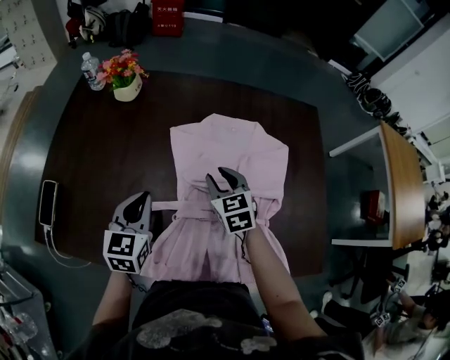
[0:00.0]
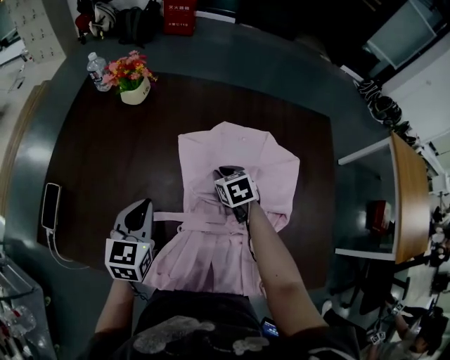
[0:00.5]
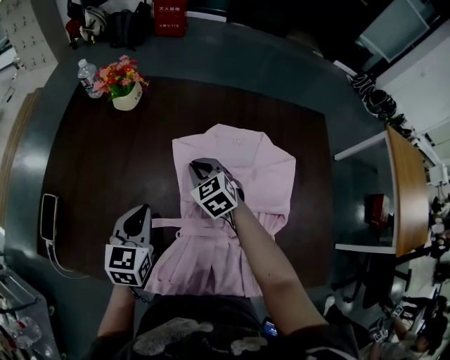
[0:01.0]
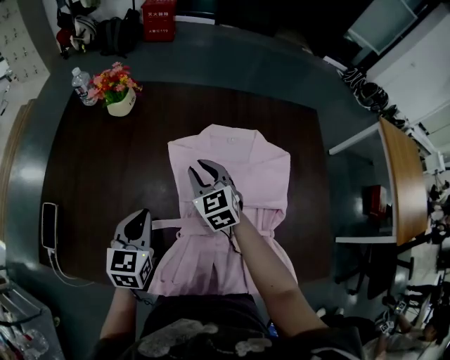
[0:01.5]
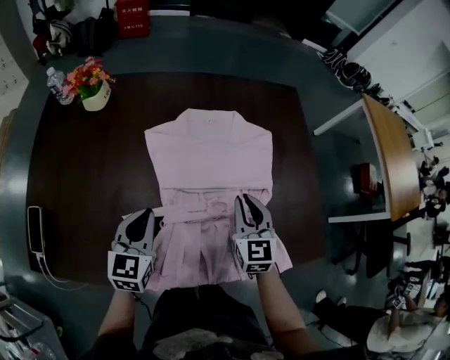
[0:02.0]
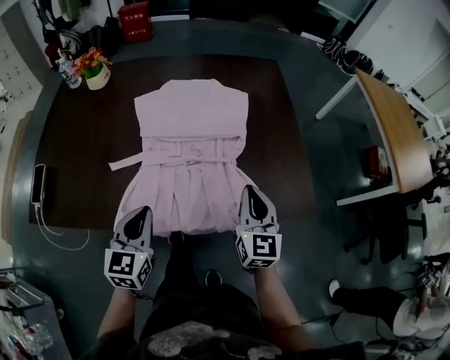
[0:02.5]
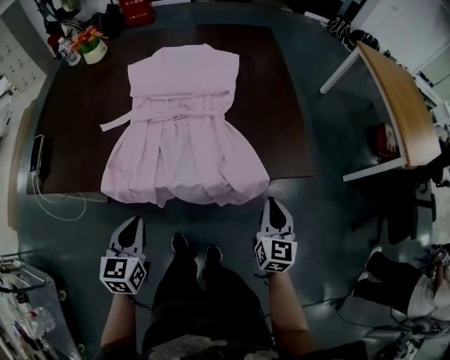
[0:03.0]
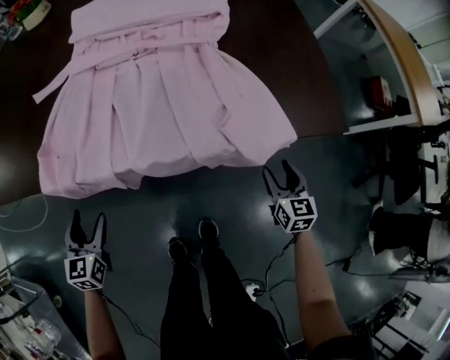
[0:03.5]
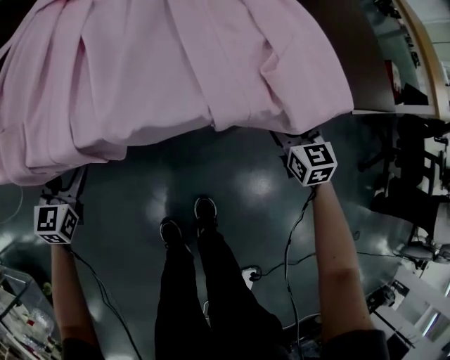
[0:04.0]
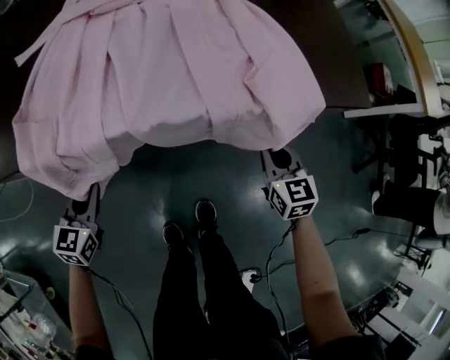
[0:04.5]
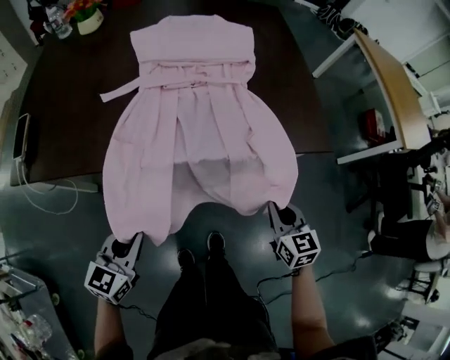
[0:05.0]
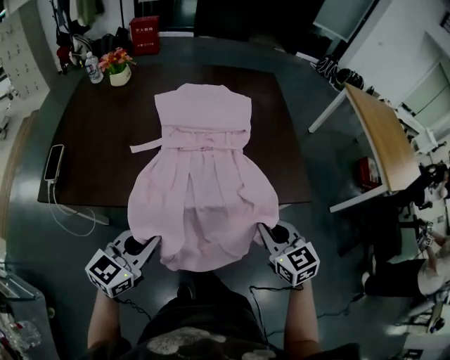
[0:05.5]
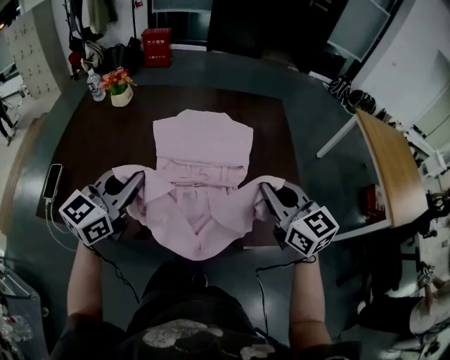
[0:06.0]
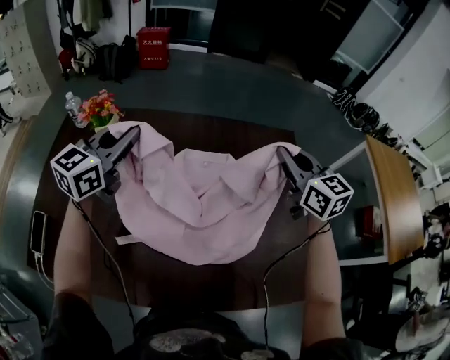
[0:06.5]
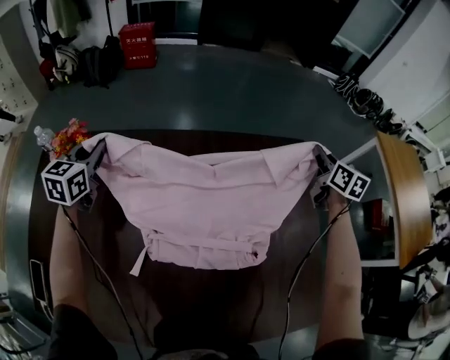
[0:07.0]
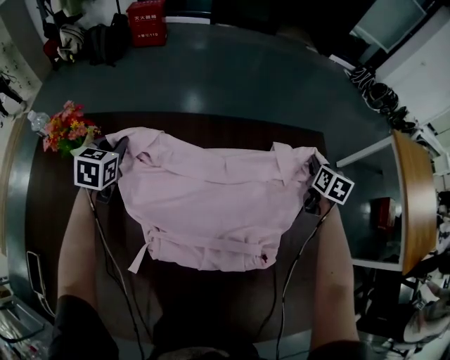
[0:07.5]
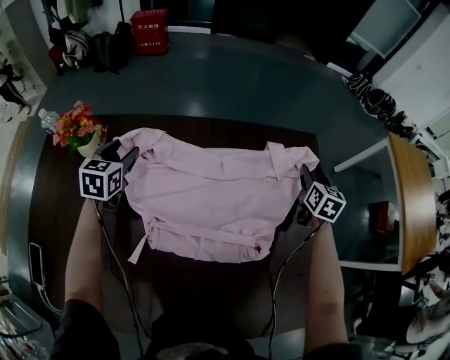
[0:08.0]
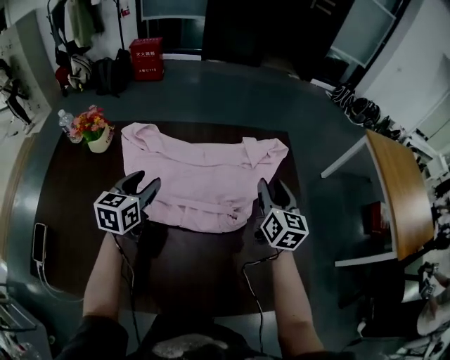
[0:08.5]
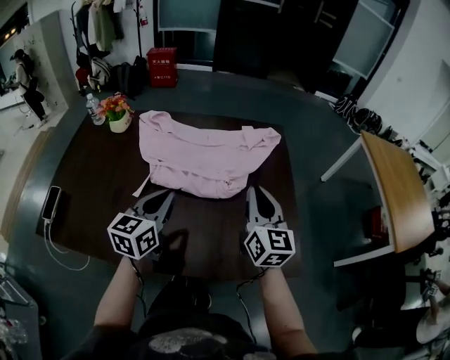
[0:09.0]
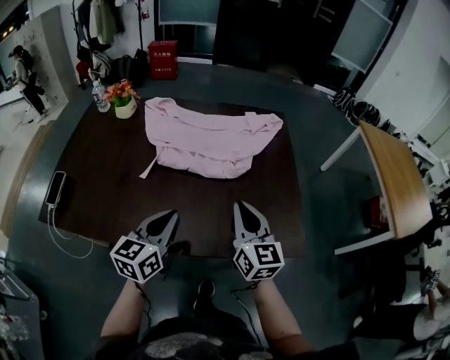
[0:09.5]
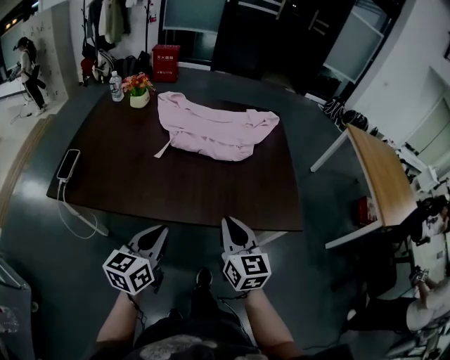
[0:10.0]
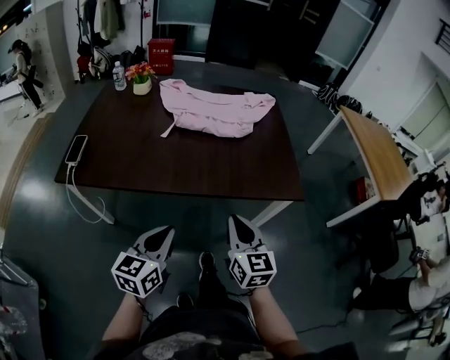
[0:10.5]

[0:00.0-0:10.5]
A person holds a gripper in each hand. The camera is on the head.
0:00.0 to 0:02.0: The right gripper heads to the right and backward, covering roughly 15 cm, and changes its angle by some 30 degrees. Meanwhile the left gripper changes place by roughly 5 cm.
0:02.0 to 0:04.0: The right gripper travels downward, to the right and backward by about 50 cm, and opens up. The left gripper goes approximately 40 cm downward and backward, and opens its fingers.
0:04.0 to 0:06.5: The two grippers travel together, forward, approximately 40 cm. The grippers both shift upward by some 60 cm. The left gripper rotates approximately 30 degrees, and closes; the right gripper turns by some 30 degrees, and closes.
0:06.5 to 0:08.5: The left gripper is displaced downward by about 15 cm, changes its angle by approximately 20 degrees, and opens up. Meanwhile the right gripper is displaced downward and to the right by some 15 cm, rotates roughly 30 degrees, and opens up.
0:08.5 to 0:10.5: Both grippers are carried backward, approximately 60 cm. The left gripper closes. Meanwhile the right gripper closes its fingers.

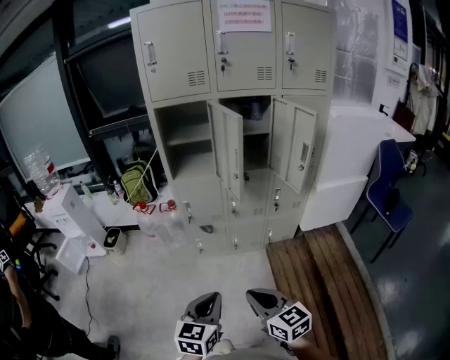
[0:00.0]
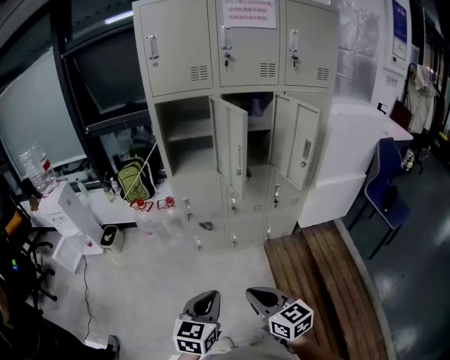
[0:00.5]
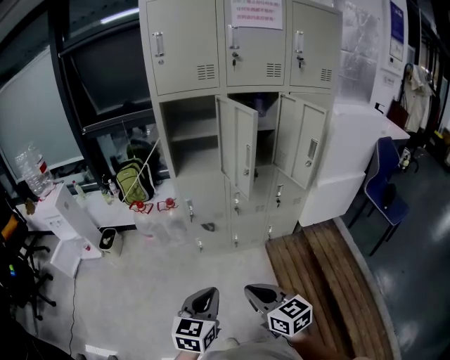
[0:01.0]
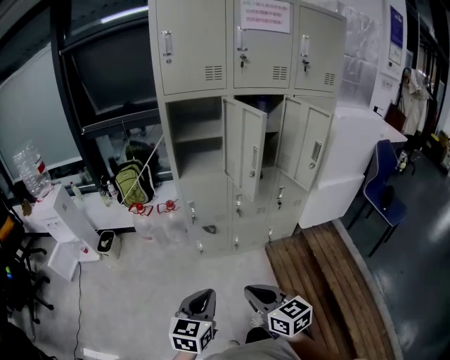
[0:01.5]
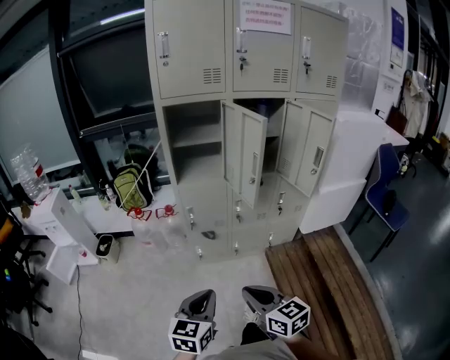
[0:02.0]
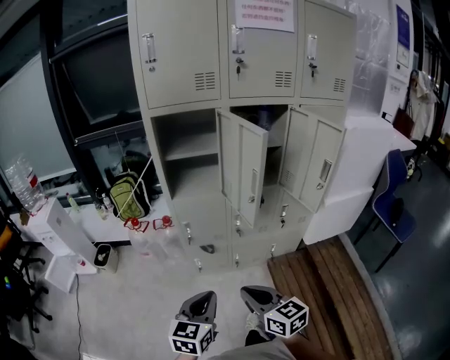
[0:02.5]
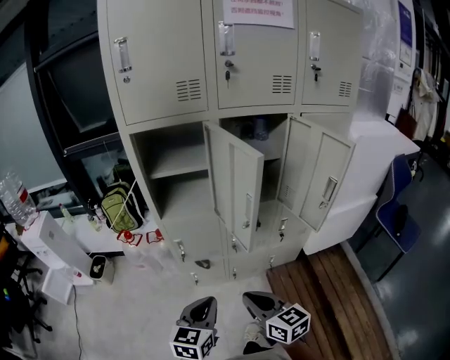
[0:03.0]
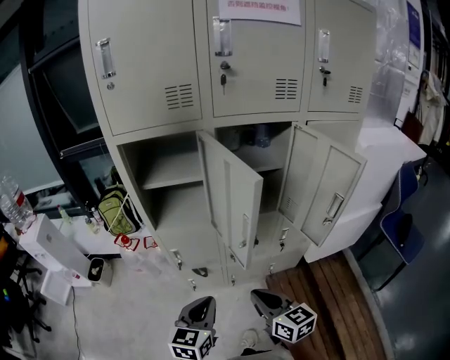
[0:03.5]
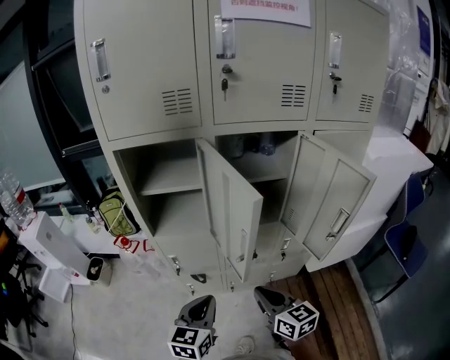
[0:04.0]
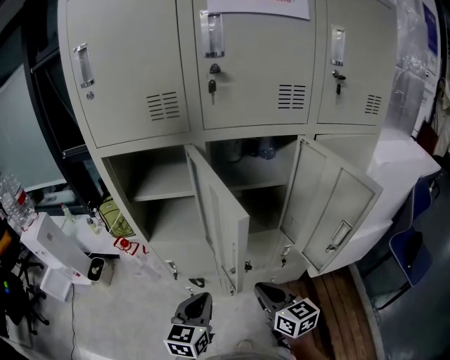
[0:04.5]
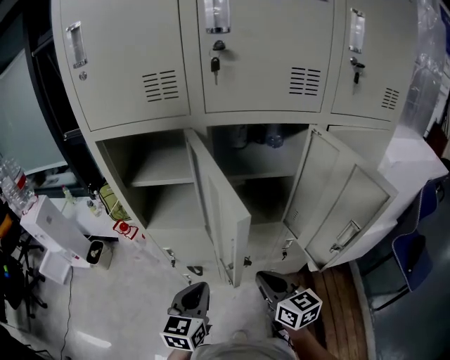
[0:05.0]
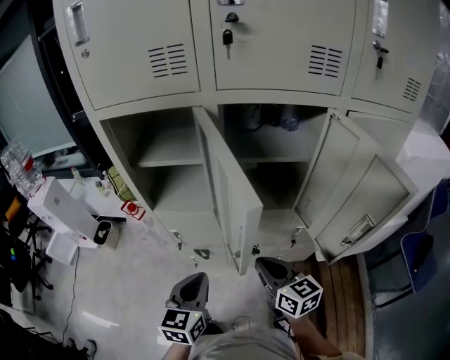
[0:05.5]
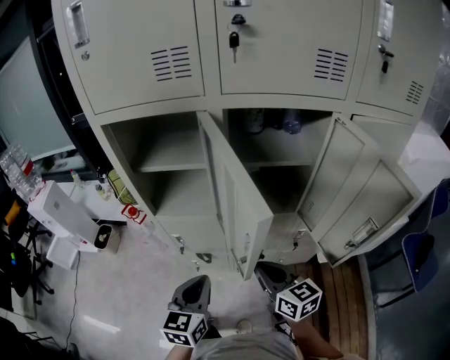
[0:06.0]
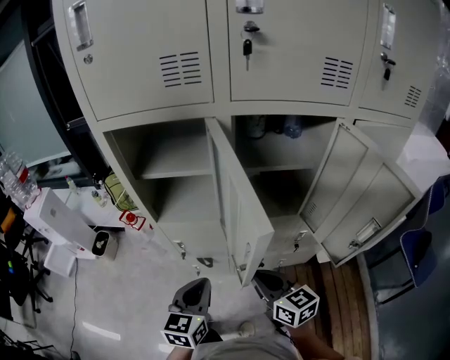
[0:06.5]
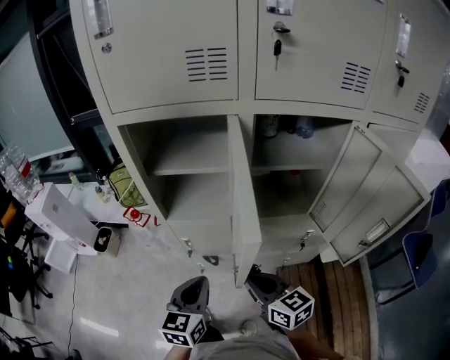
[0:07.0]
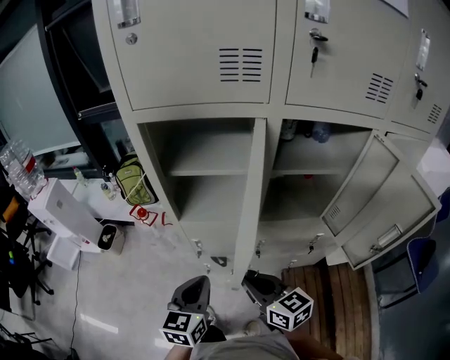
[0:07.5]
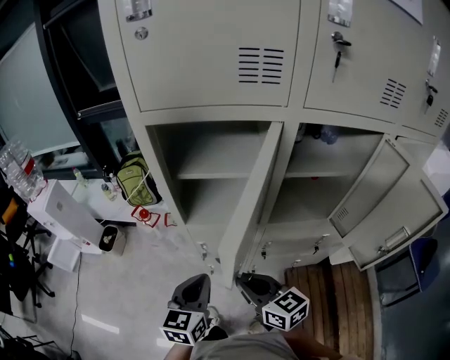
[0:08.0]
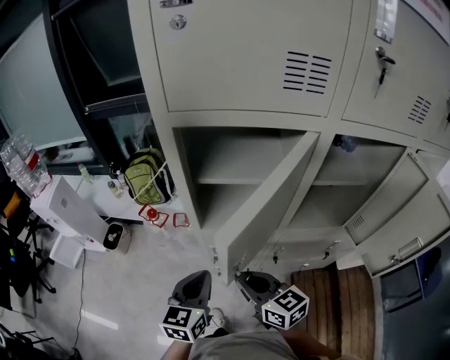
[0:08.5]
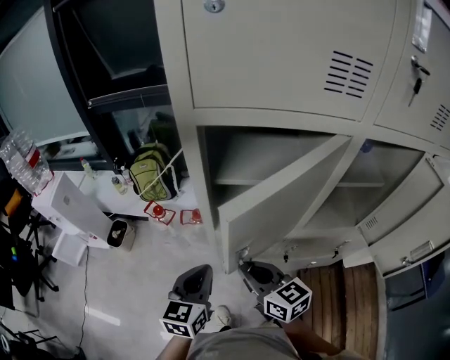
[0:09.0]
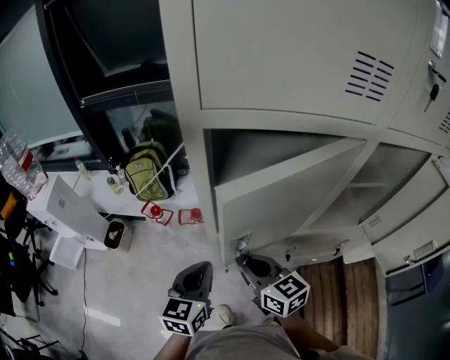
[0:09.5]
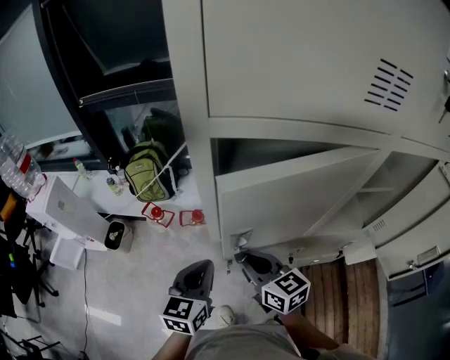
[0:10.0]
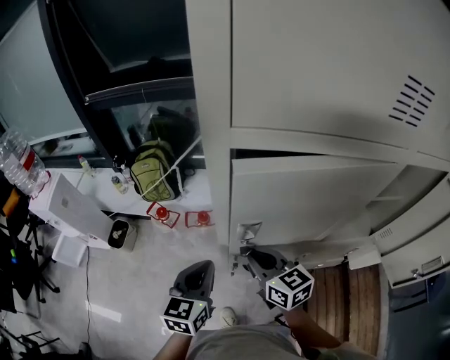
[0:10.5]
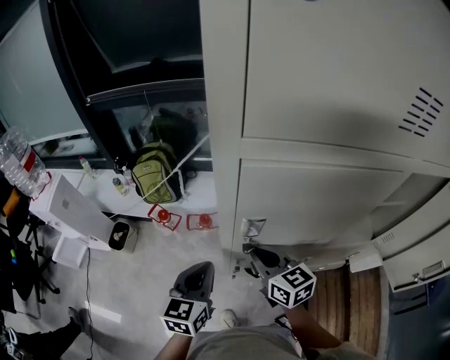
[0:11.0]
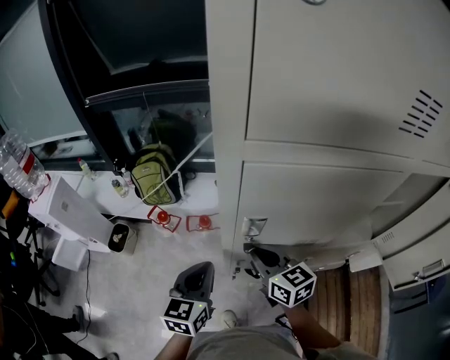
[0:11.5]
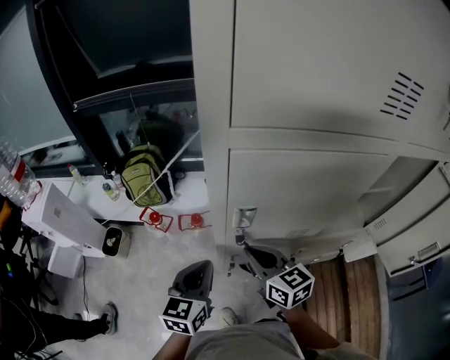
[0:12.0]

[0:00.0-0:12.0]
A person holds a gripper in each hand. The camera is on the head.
0:00.0 to 0:02.0: The grippers both shift to the left and forward by some 10 cm.
0:02.0 to 0:04.0: The grippers both shift forward and to the right by roughly 35 cm.
0:04.0 to 0:06.0: The grippers both shift forward by some 10 cm.
0:06.0 to 0:08.0: The left gripper heads to the left and forward, covering approximately 15 cm. The right gripper travels to the left by some 20 cm.
0:08.0 to 0:10.0: The two grippers go approximately 15 cm forward and to the left.
0:10.0 to 0:12.0: There are only small adjustments of the grippers.

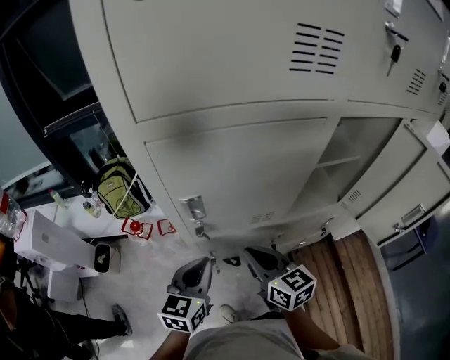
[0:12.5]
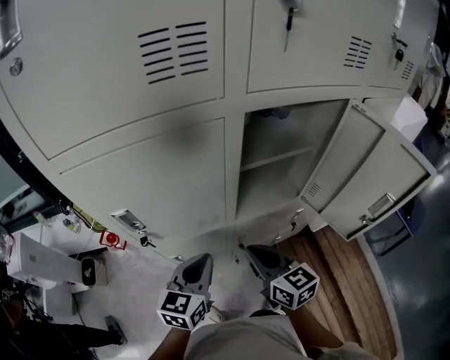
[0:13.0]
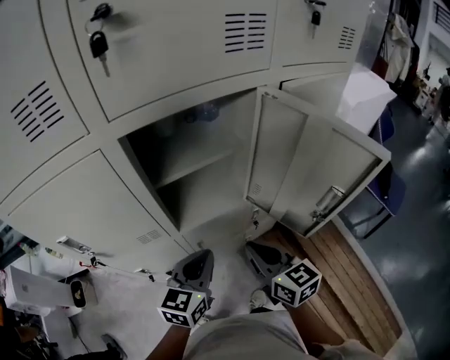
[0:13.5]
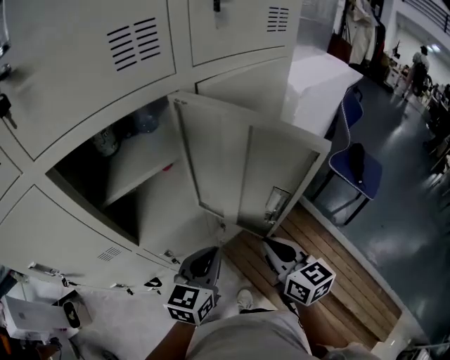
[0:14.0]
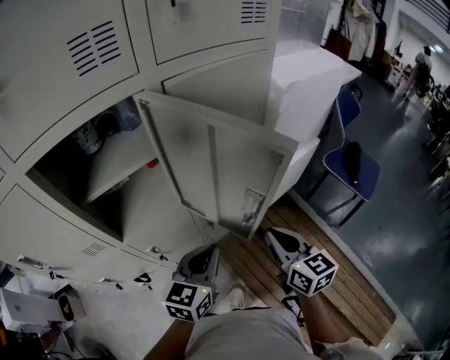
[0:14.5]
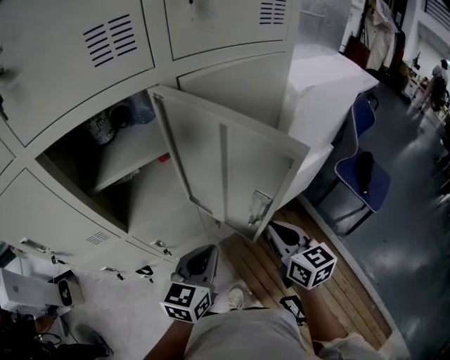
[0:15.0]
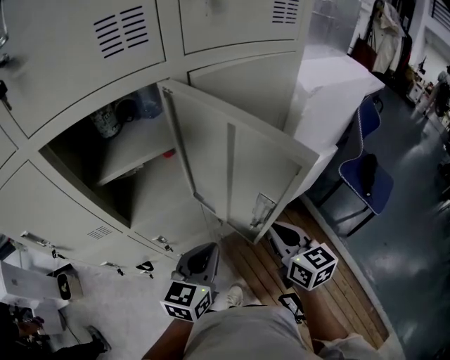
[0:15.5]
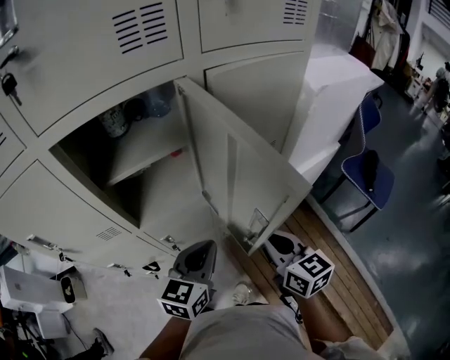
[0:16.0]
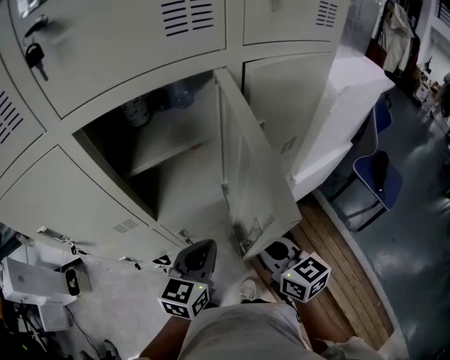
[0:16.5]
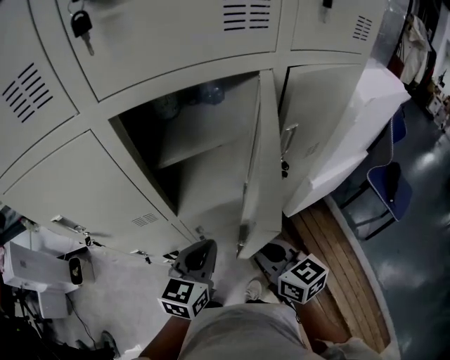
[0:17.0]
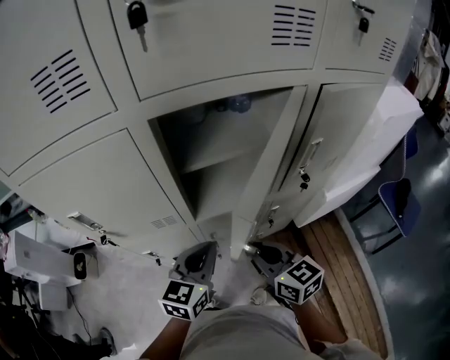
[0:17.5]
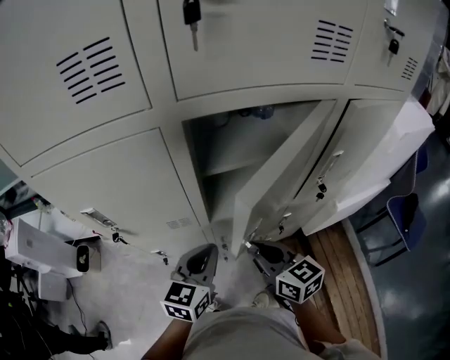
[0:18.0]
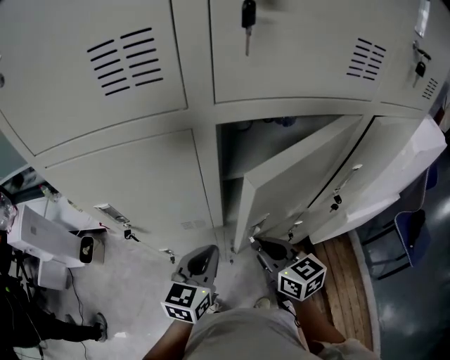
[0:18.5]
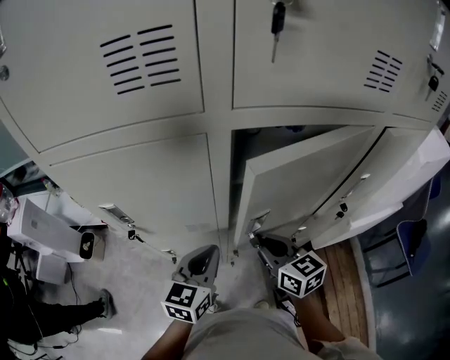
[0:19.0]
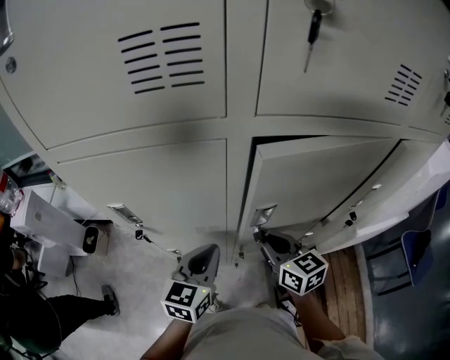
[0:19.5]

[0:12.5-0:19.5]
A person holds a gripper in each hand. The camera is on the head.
0:12.5 to 0:14.5: Both grippers are carried approximately 50 cm. The left gripper changes its angle by about 30 degrees. The right gripper changes its angle by approximately 30 degrees.
0:14.5 to 0:16.0: Both grippers travel together to the left, roughly 5 cm.
0:16.0 to 0:17.5: The grippers both shift to the left by approximately 20 cm.
0:17.5 to 0:19.5: The right gripper heads forward and to the left, covering roughly 15 cm; the left gripper goes roughly 10 cm to the left.
